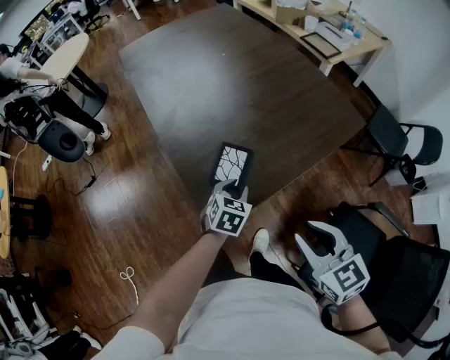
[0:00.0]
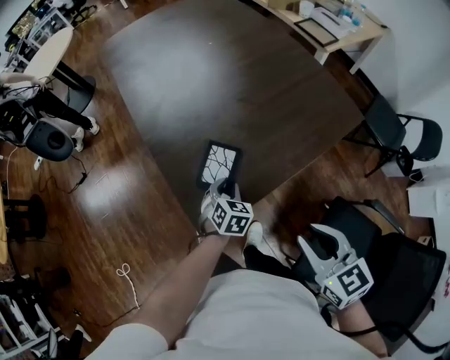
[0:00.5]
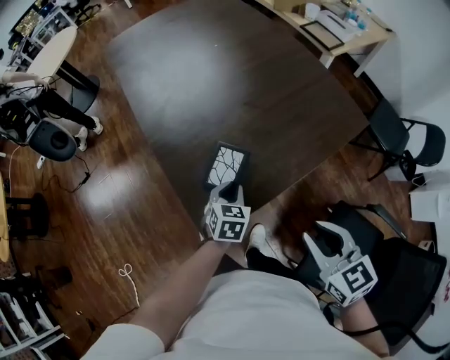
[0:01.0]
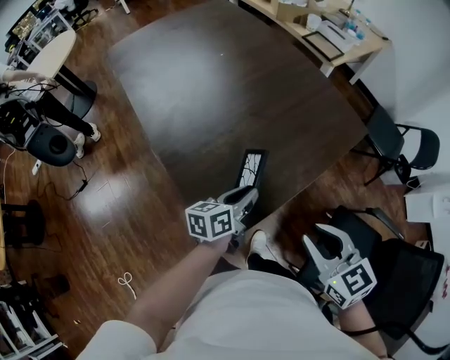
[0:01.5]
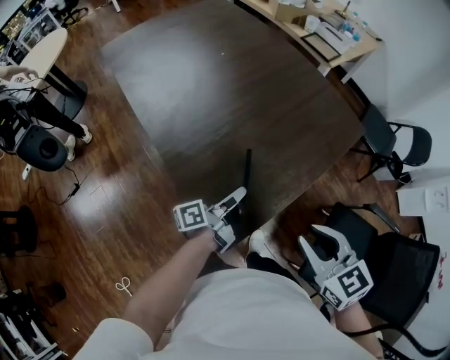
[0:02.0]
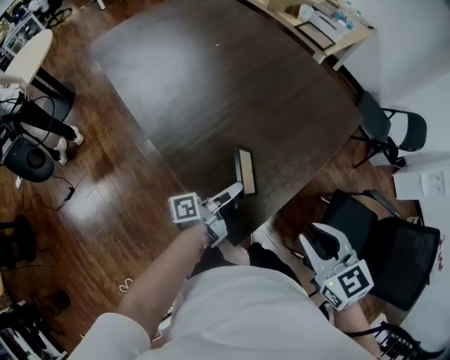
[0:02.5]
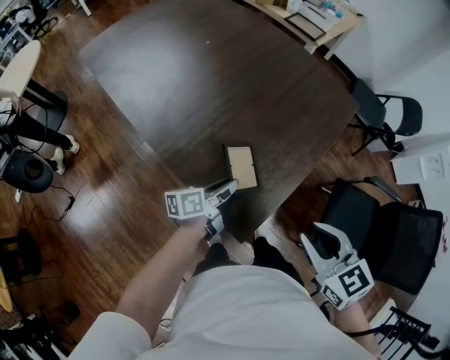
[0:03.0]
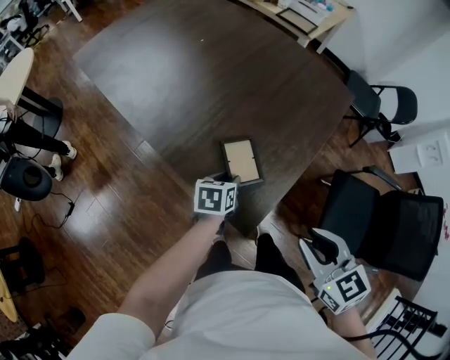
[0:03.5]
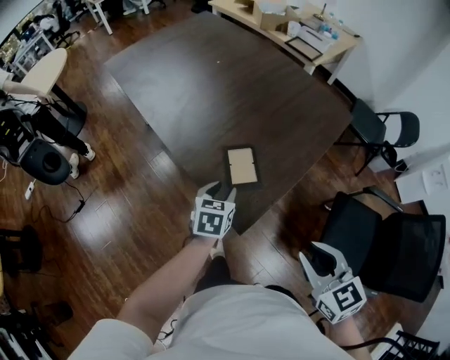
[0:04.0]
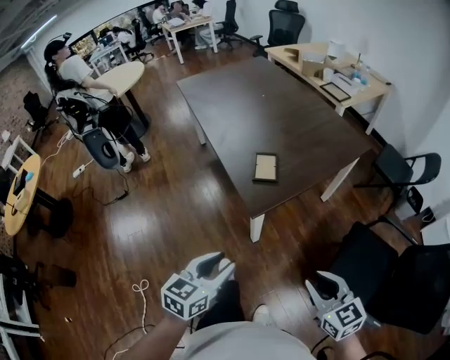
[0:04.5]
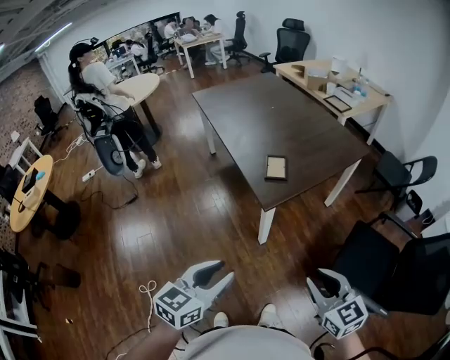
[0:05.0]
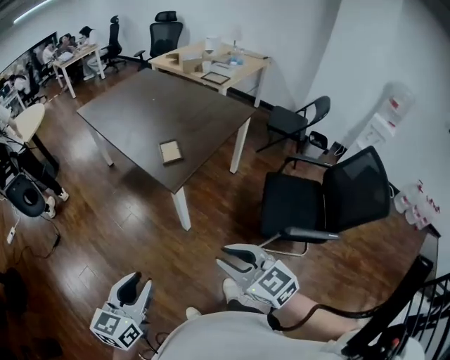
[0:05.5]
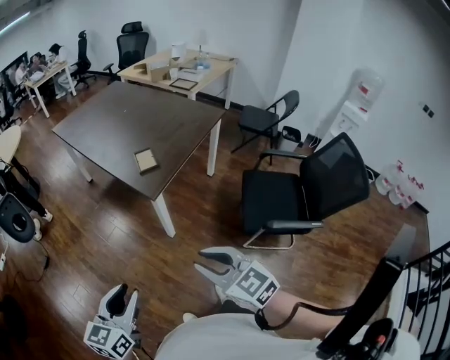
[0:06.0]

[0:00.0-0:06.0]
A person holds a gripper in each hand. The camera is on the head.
0:00.0 to 0:02.0: The left gripper is displaced upward by approximately 5 cm, and tips its fingers upward by some 50 degrees; the right gripper shifts some 5 cm forward.
0:02.0 to 0:04.0: The right gripper is displaced backward by roughly 10 cm; the left gripper shifts about 5 cm to the left, rotates around the line of its fingers by some 70 degrees, clockwise from behind, and opens.
0:04.0 to 0:06.0: The left gripper goes approximately 50 cm backward, and rotates about 30 degrees. The right gripper shifts some 25 cm backward.

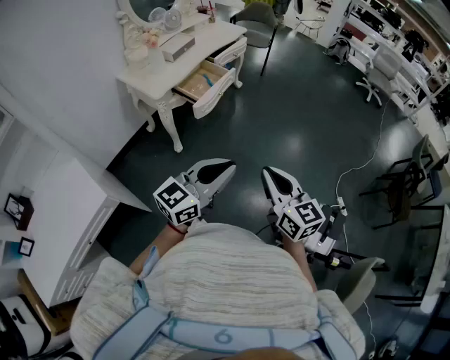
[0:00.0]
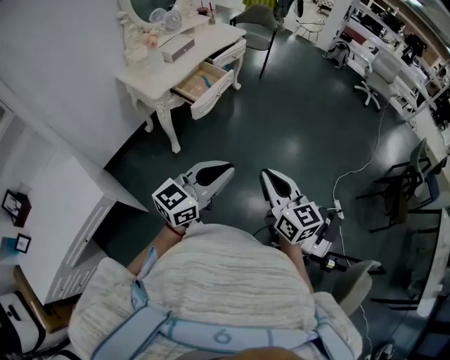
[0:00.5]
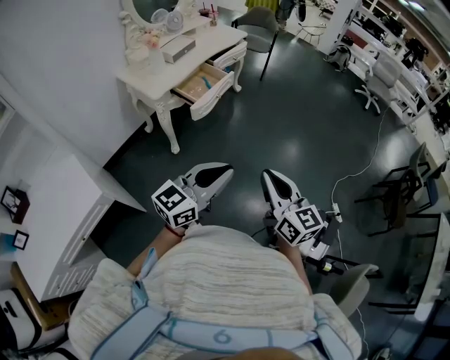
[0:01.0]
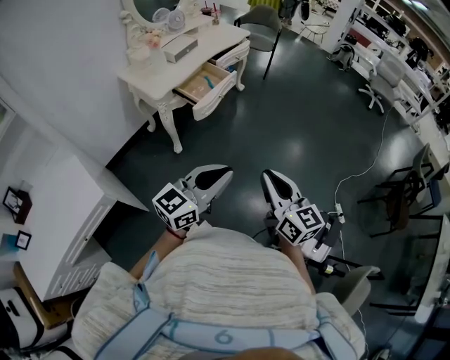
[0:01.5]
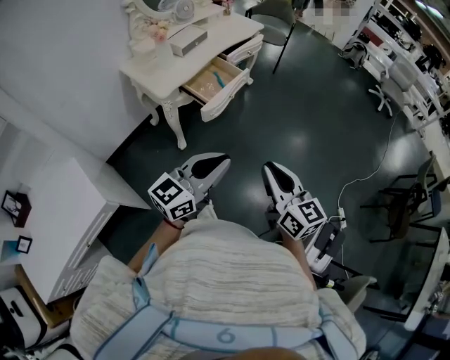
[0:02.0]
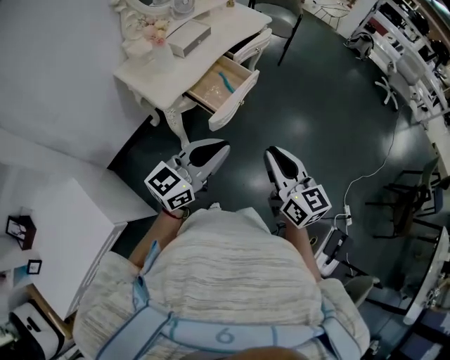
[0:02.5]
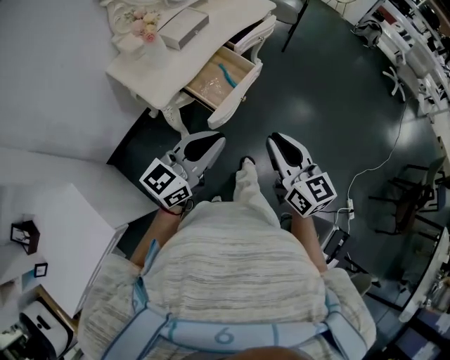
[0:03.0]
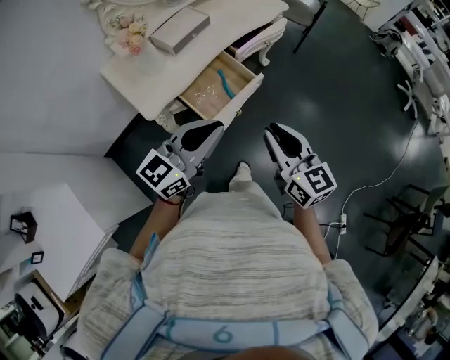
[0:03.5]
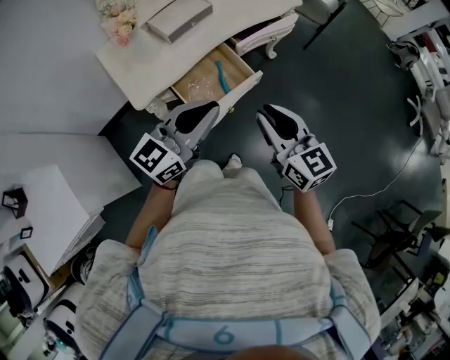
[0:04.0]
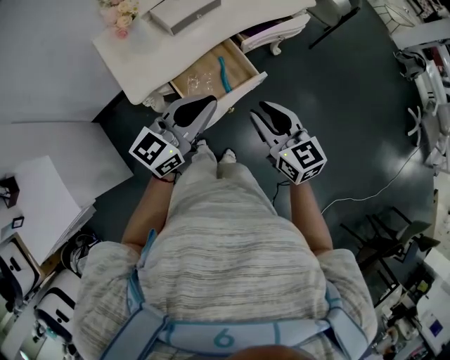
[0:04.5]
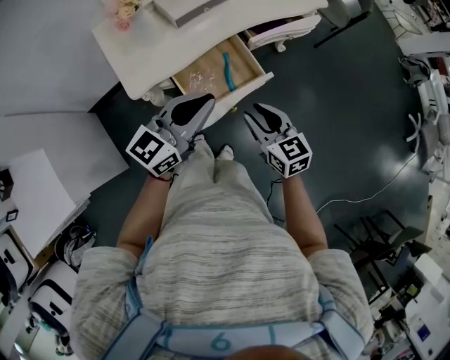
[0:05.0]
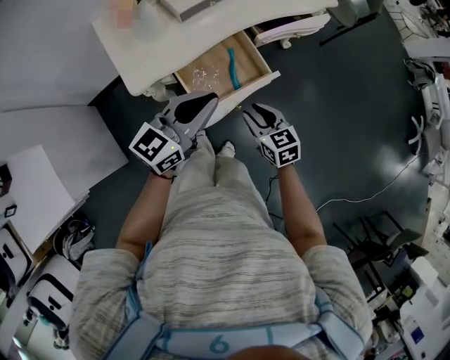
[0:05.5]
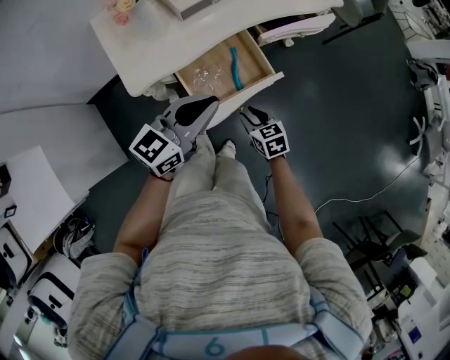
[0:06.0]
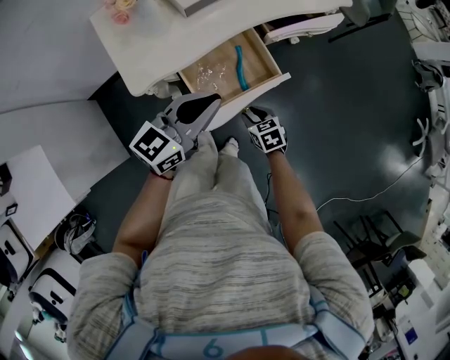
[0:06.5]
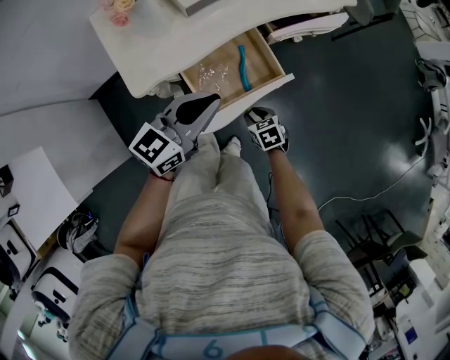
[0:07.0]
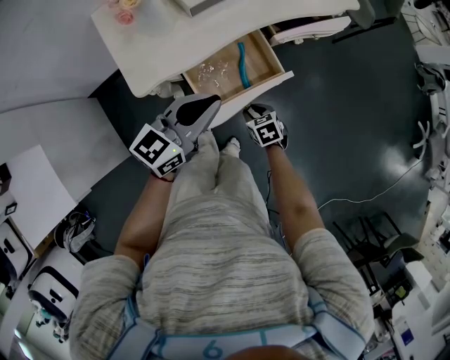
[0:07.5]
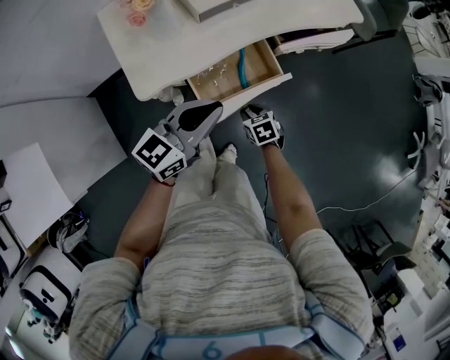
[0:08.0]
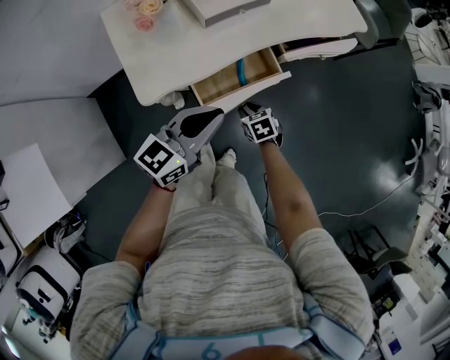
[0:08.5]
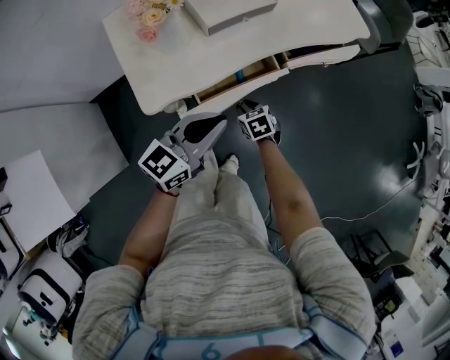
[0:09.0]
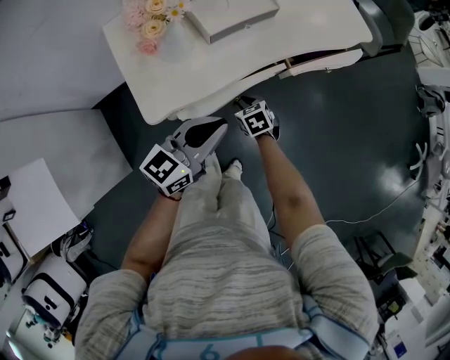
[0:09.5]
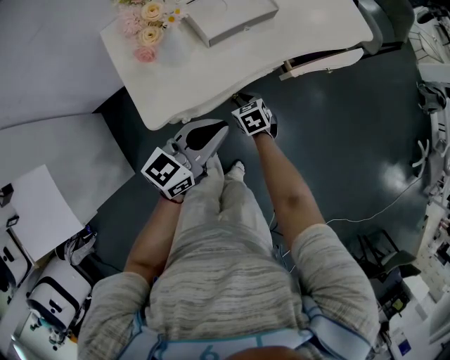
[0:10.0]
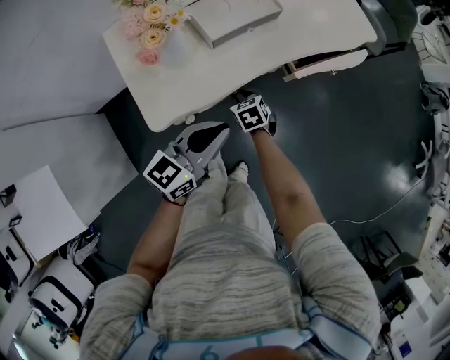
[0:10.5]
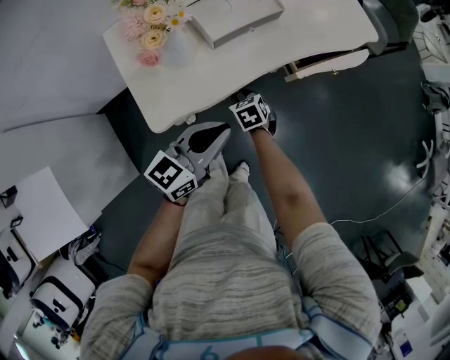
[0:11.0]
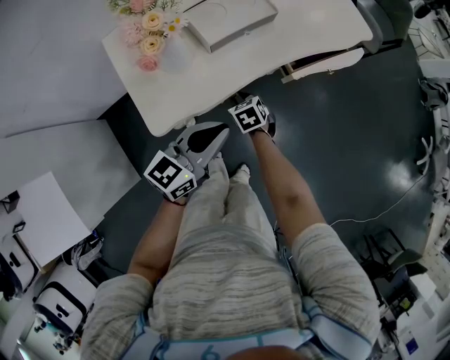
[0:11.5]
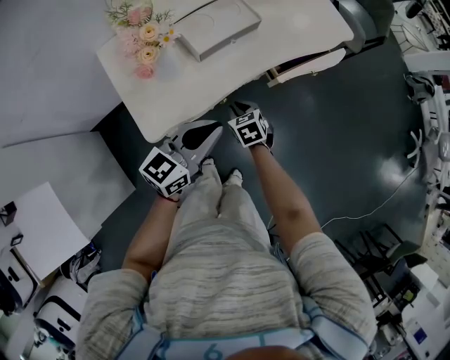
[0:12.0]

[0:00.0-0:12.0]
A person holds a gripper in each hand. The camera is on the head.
0:00.0 to 0:02.0: The grippers both shift forward and to the left by approximately 10 cm.
0:02.0 to 0:04.0: The two grippers travel together, forward, approximately 40 cm. The right gripper rotates approximately 20 degrees.
0:04.0 to 0:06.0: The right gripper goes about 30 cm downward, and tilts its fingers about 40 degrees downward, while the left gripper shifts approximately 15 cm downward and forward.
0:06.0 to 0:08.0: The left gripper ends up about 5 cm from where it was; the right gripper is displaced downward and forward by roughly 10 cm.
0:08.0 to 0:10.0: The right gripper shifts about 15 cm forward and to the left. Meanwhile the left gripper changes place by approximately 5 cm.
0:10.0 to 0:12.0: The right gripper is displaced upward by about 5 cm.

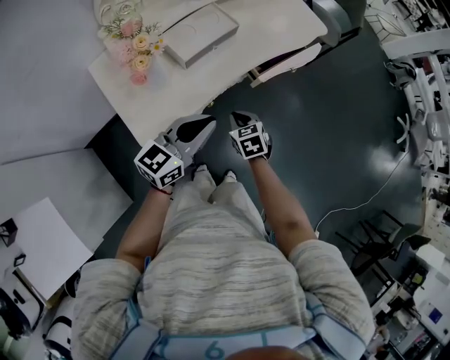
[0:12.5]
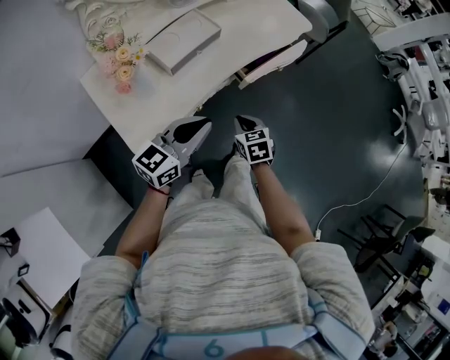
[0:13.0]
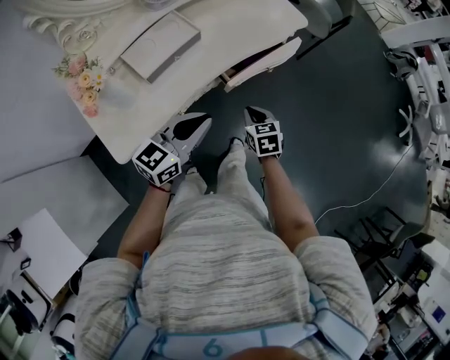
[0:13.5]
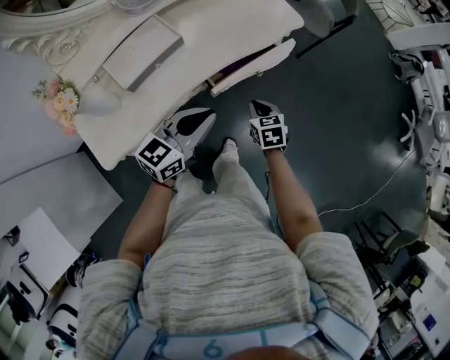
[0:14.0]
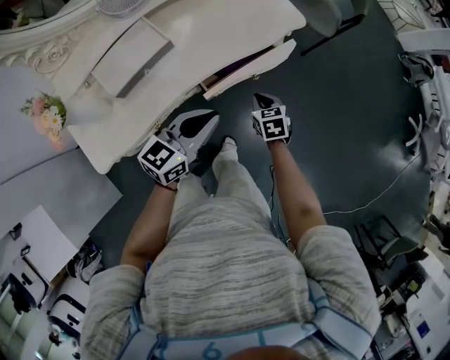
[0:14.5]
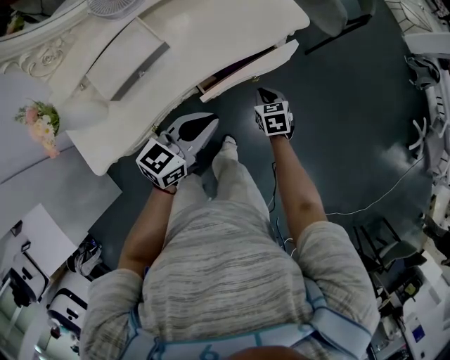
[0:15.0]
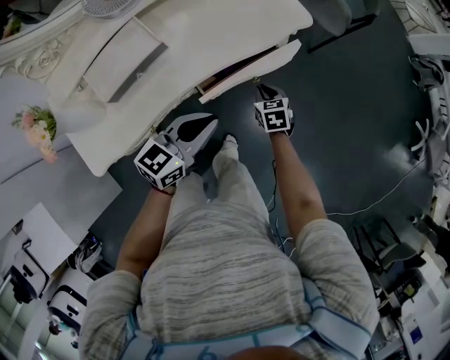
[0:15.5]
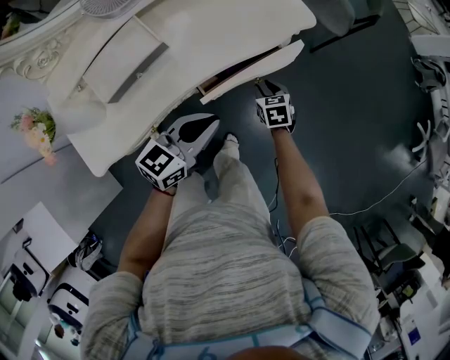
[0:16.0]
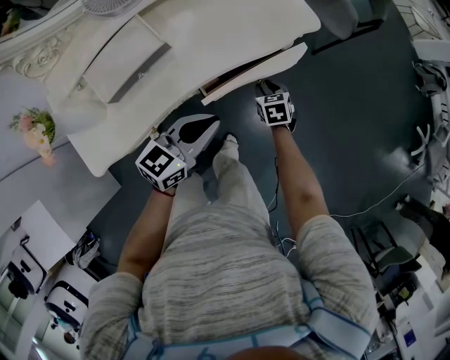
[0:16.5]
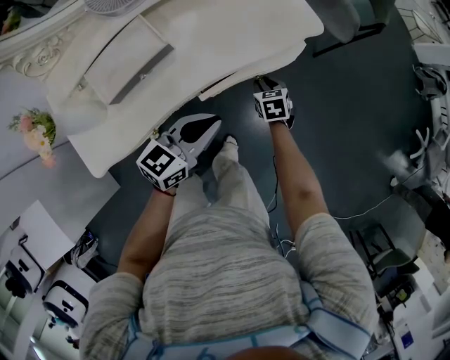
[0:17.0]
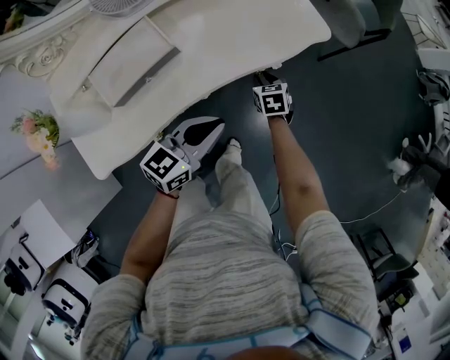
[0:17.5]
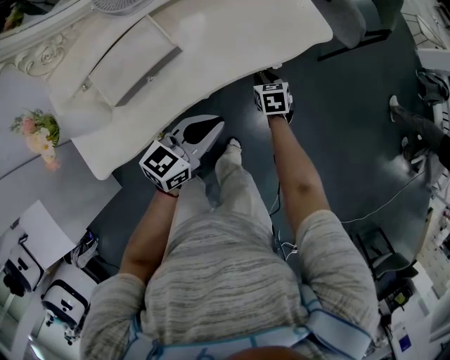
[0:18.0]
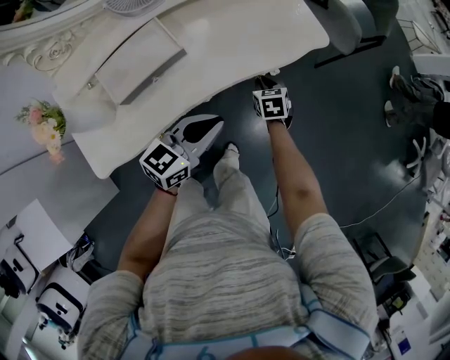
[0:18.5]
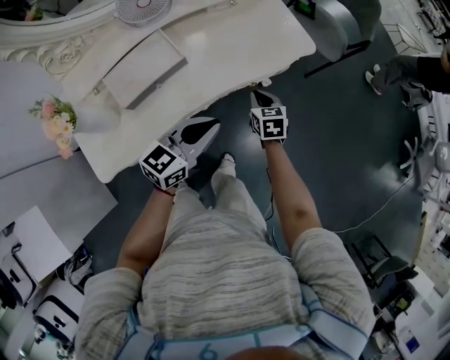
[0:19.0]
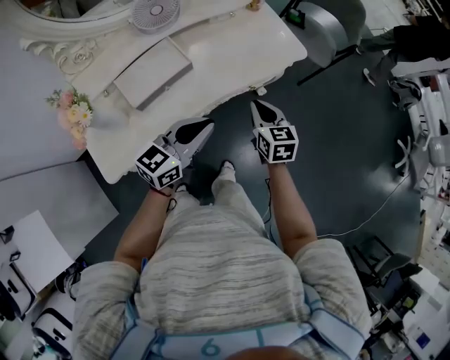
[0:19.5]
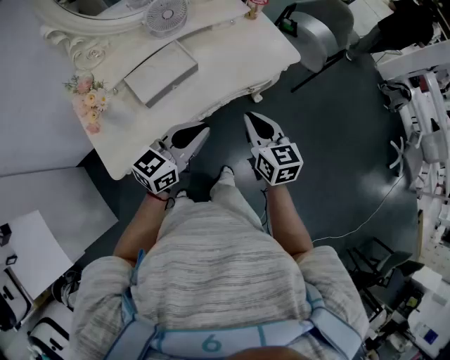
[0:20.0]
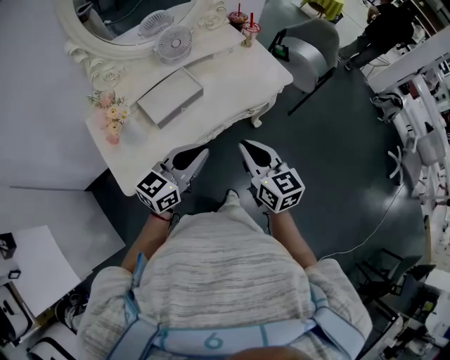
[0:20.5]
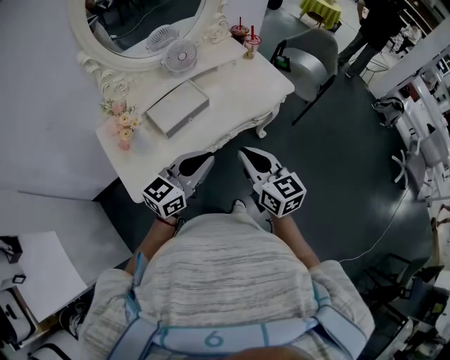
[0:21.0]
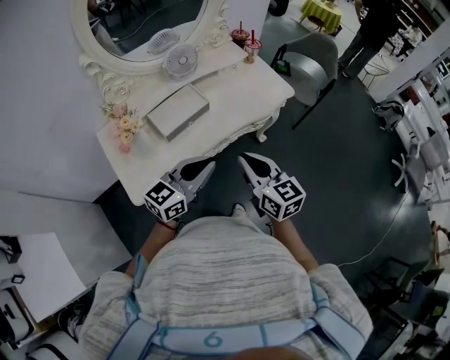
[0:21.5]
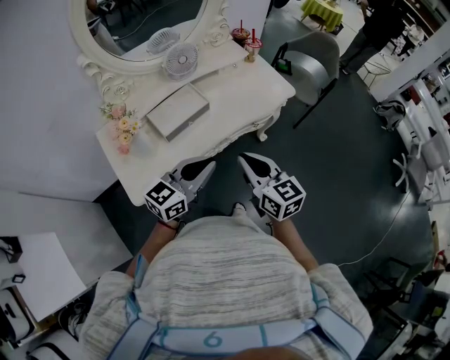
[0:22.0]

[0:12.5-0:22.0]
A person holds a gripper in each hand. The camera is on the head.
0:12.5 to 0:14.5: Both grippers travel together to the right and forward, some 30 cm.
0:14.5 to 0:16.5: The right gripper moves forward and downward, about 10 cm, and opens its fingers.
0:16.5 to 0:18.0: The right gripper moves to the left, approximately 5 cm.
0:18.0 to 0:20.0: The left gripper moves upward, backward and to the left, approximately 20 cm. The right gripper heads upward and backward, covering some 35 cm, angles its fingers upward, by roughly 30 degrees, and closes up.
0:20.0 to 0:22.0: The left gripper heads backward, covering roughly 5 cm; the right gripper is displaced backward and upward by about 10 cm.
